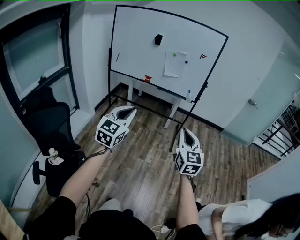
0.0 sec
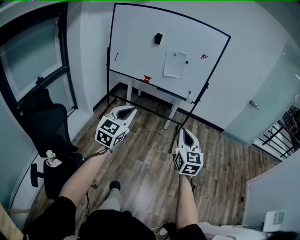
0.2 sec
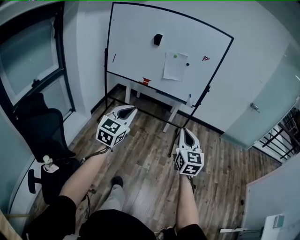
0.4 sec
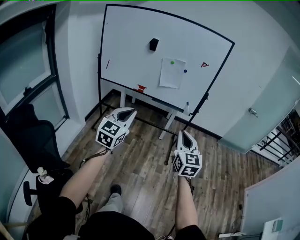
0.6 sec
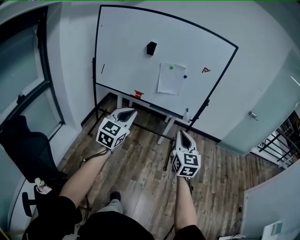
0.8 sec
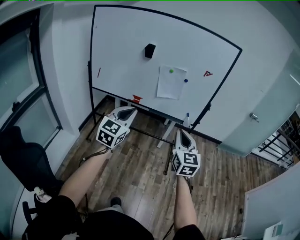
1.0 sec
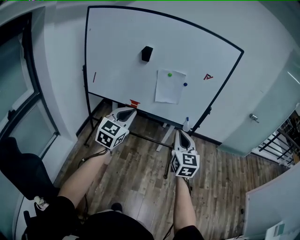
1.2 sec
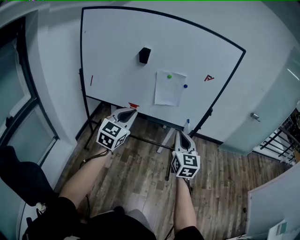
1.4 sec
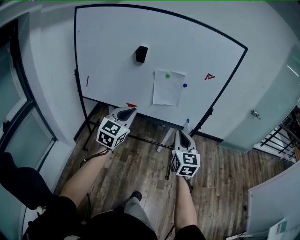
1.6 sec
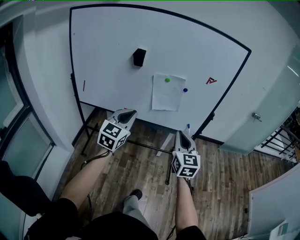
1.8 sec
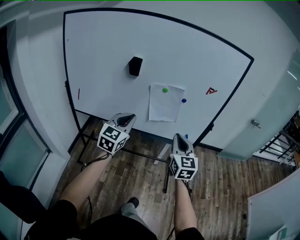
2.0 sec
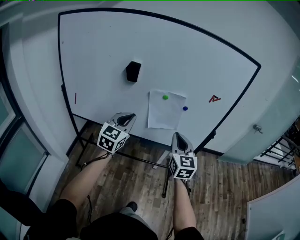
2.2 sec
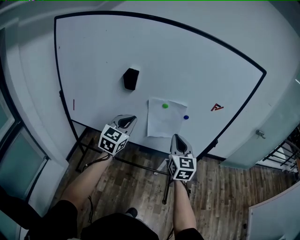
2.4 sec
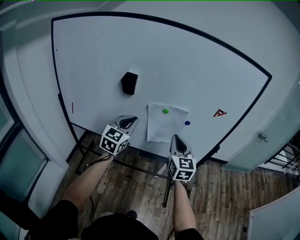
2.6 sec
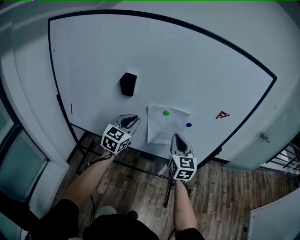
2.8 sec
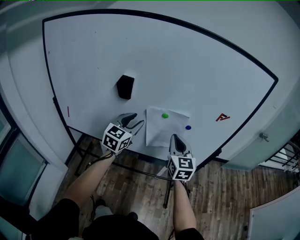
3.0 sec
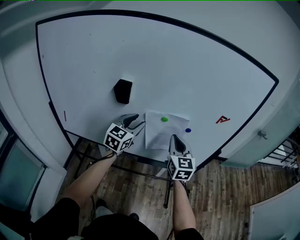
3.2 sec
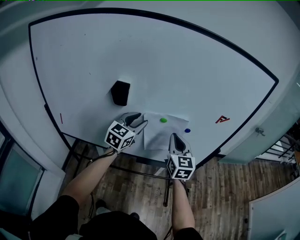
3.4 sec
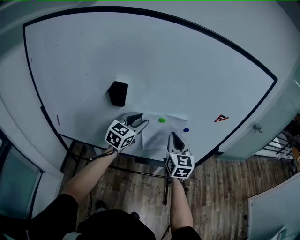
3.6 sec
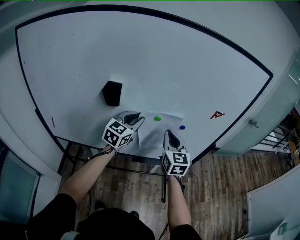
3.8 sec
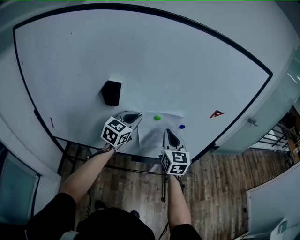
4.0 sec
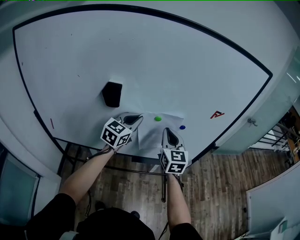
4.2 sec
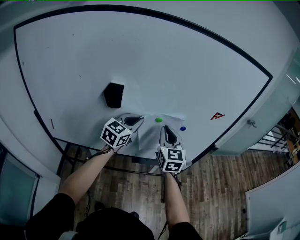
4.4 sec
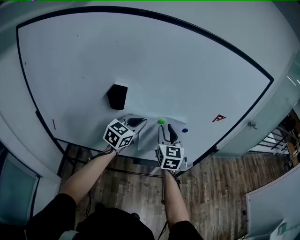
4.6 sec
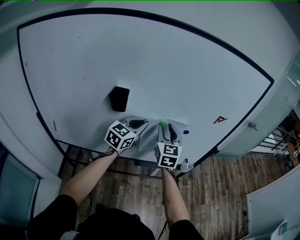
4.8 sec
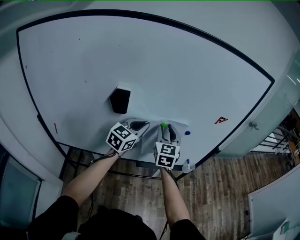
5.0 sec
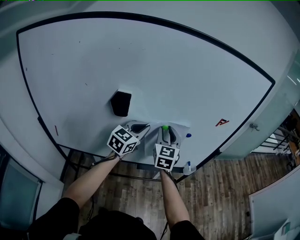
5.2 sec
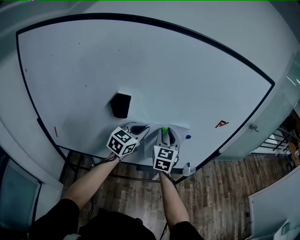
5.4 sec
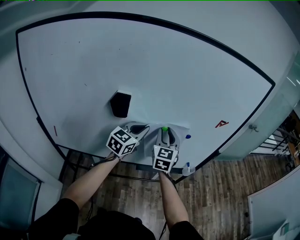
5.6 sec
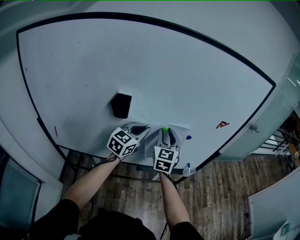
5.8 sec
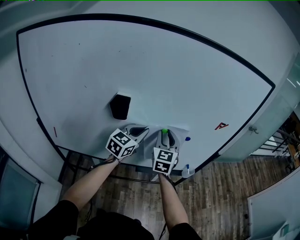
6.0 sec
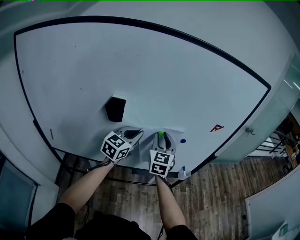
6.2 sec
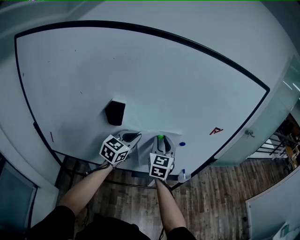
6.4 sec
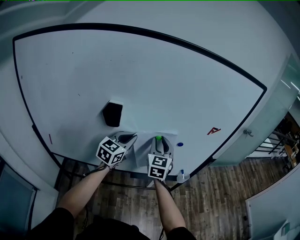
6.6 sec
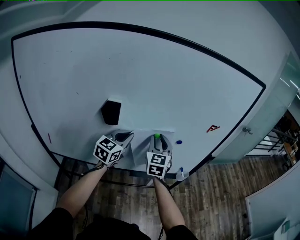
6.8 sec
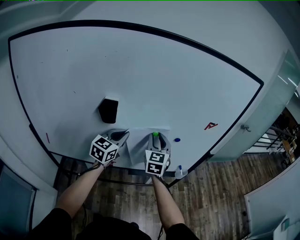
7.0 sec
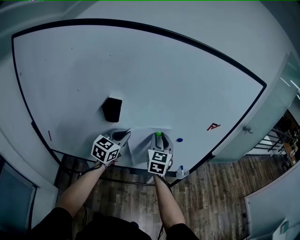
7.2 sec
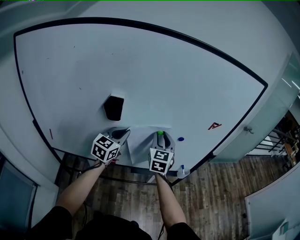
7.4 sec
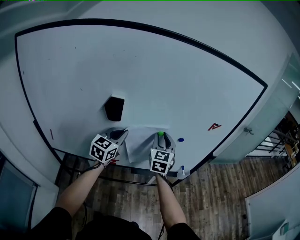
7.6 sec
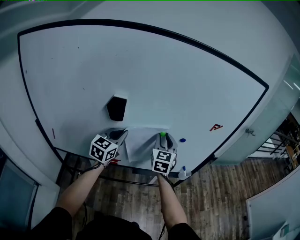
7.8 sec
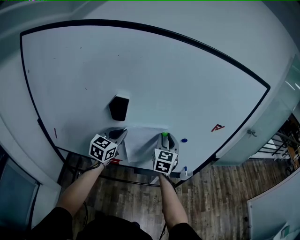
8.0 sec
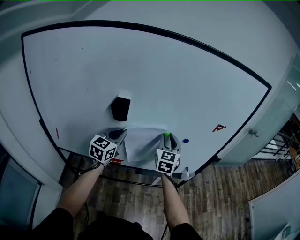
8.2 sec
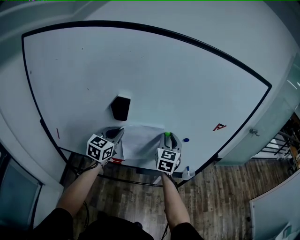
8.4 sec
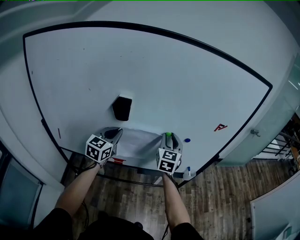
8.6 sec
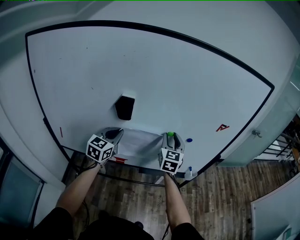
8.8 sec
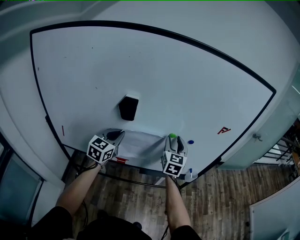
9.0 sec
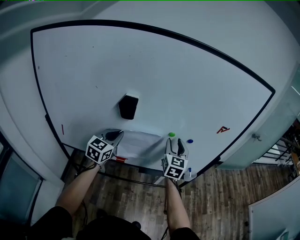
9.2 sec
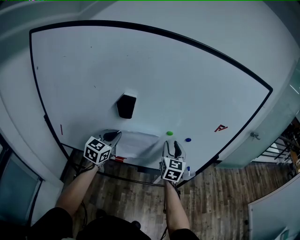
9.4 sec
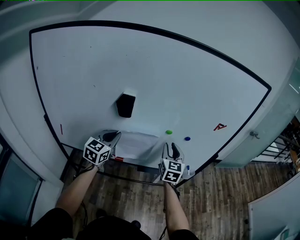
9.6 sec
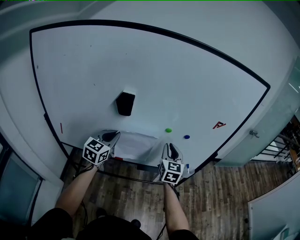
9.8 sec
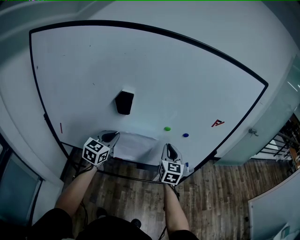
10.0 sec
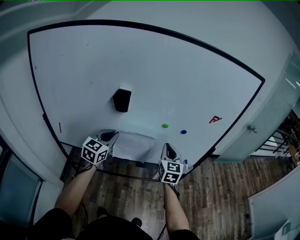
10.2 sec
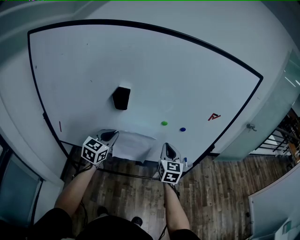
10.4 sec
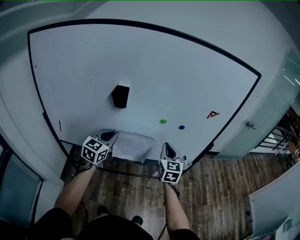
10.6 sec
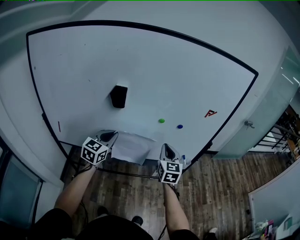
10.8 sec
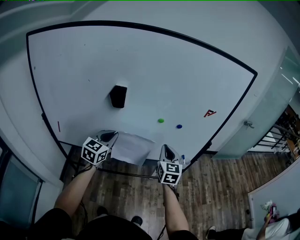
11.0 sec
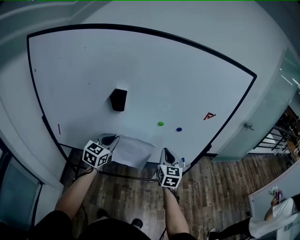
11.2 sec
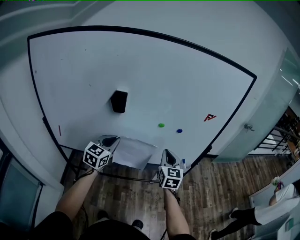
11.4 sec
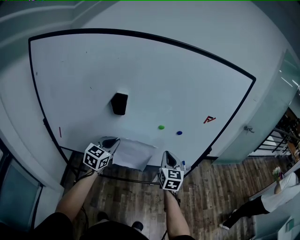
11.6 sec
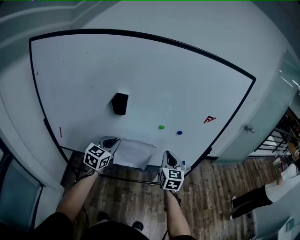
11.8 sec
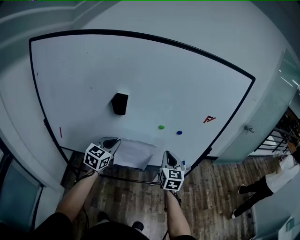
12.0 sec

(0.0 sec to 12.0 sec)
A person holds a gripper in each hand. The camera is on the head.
0.0 sec - 1.6 sec: Both grippers are carried forward, some 50 cm.
1.6 sec - 3.0 sec: The grippers both shift forward by approximately 35 cm. The left gripper opens up.
3.0 sec - 4.4 sec: Both grippers travel together forward, some 5 cm. The left gripper closes up.
4.4 sec - 6.0 sec: The right gripper opens its fingers.
6.0 sec - 7.6 sec: The left gripper moves to the left, roughly 5 cm.
7.6 sec - 9.0 sec: The left gripper heads to the left, covering roughly 5 cm.
9.0 sec - 10.4 sec: The right gripper travels backward by some 10 cm, and closes up, while the left gripper is displaced backward by some 5 cm.
10.4 sec - 12.0 sec: The grippers make only small movements.

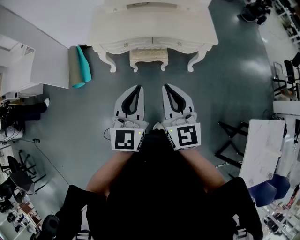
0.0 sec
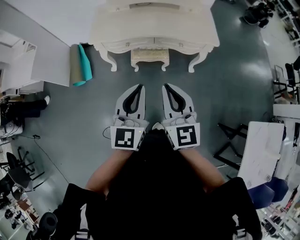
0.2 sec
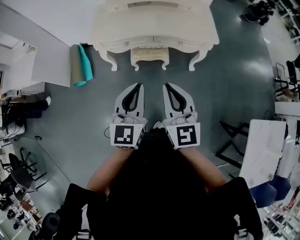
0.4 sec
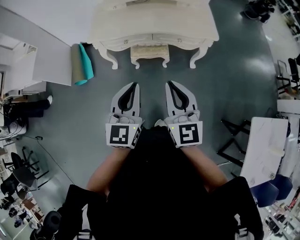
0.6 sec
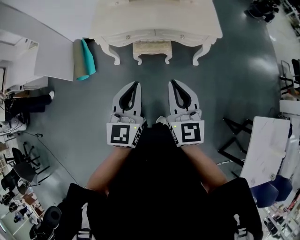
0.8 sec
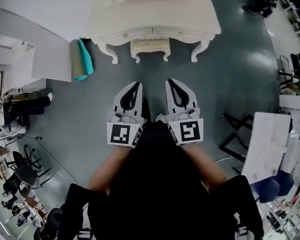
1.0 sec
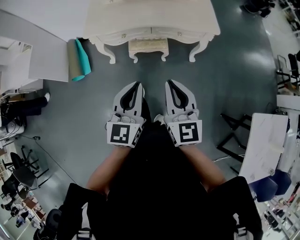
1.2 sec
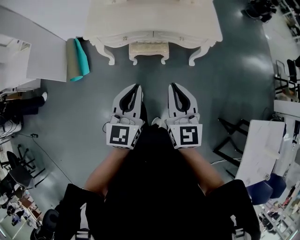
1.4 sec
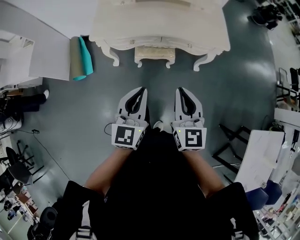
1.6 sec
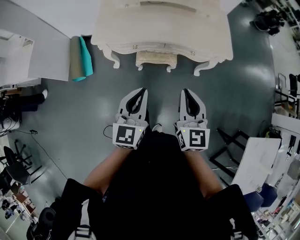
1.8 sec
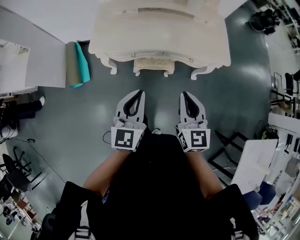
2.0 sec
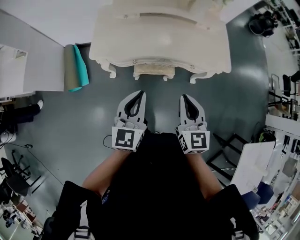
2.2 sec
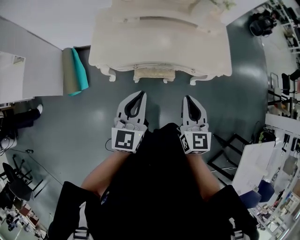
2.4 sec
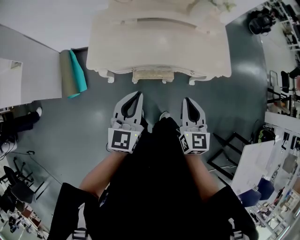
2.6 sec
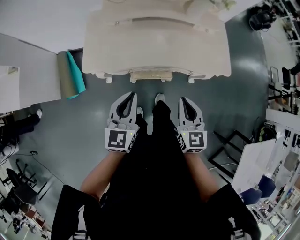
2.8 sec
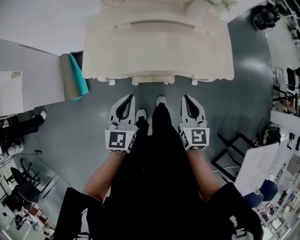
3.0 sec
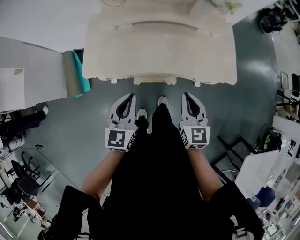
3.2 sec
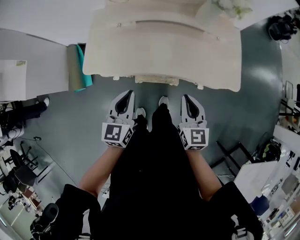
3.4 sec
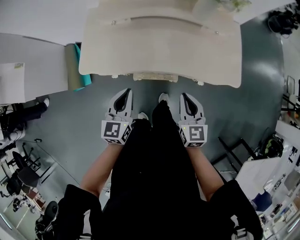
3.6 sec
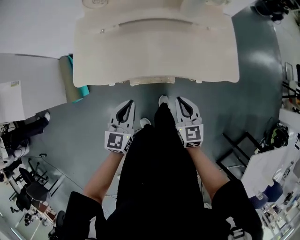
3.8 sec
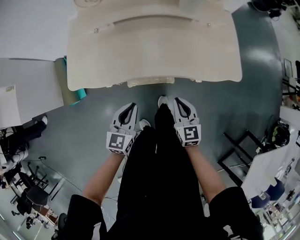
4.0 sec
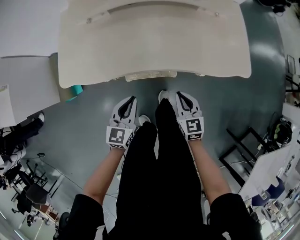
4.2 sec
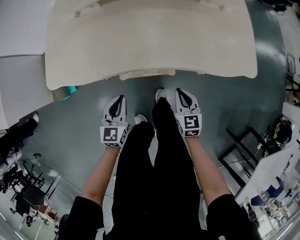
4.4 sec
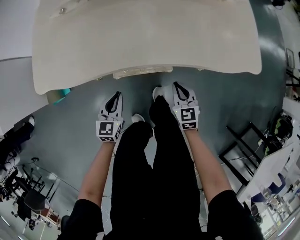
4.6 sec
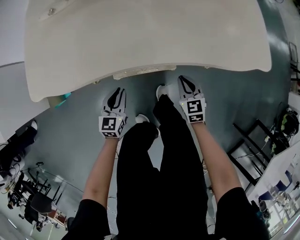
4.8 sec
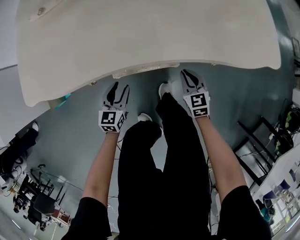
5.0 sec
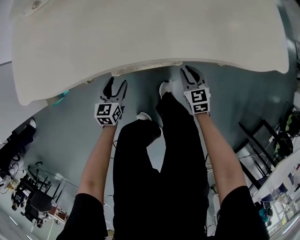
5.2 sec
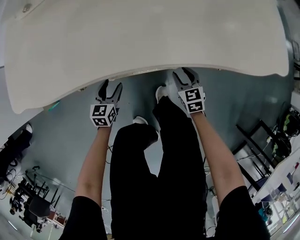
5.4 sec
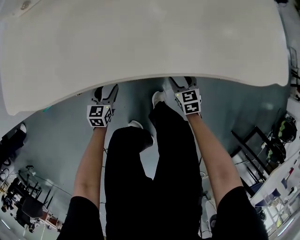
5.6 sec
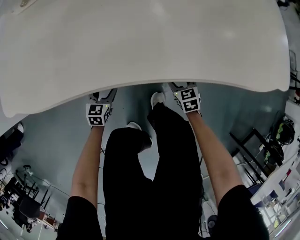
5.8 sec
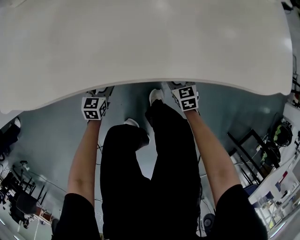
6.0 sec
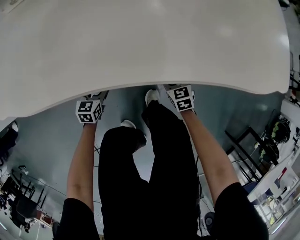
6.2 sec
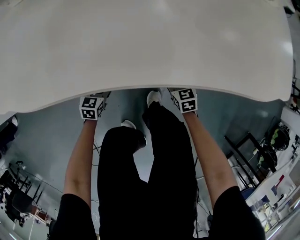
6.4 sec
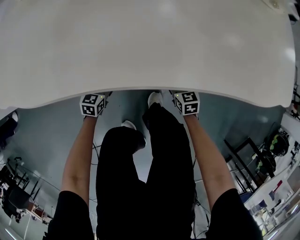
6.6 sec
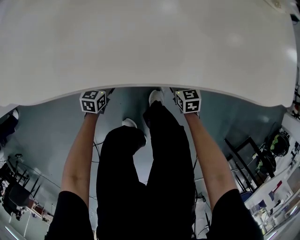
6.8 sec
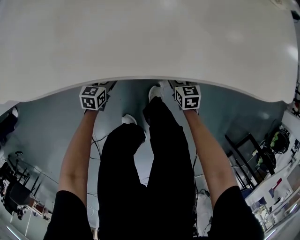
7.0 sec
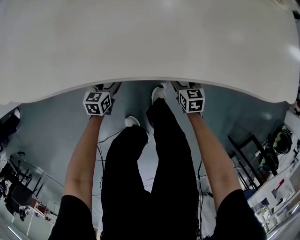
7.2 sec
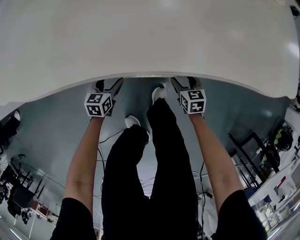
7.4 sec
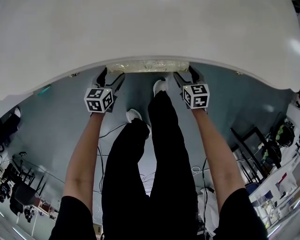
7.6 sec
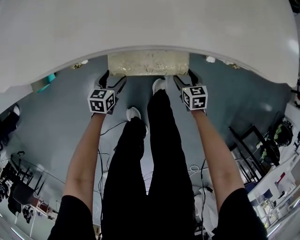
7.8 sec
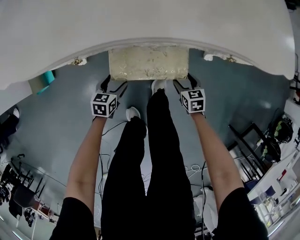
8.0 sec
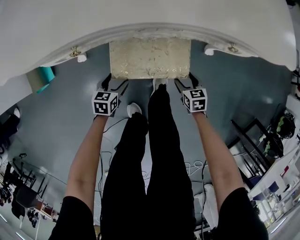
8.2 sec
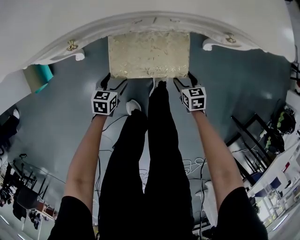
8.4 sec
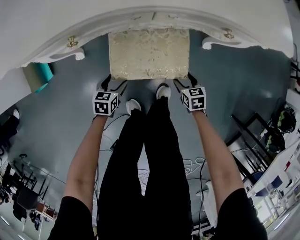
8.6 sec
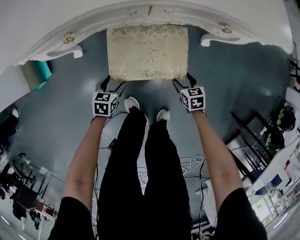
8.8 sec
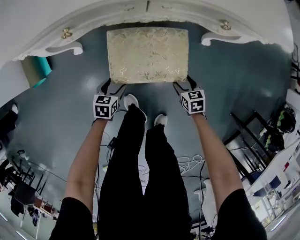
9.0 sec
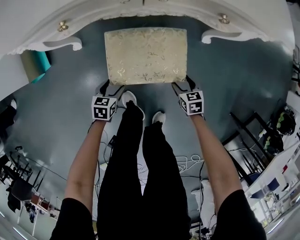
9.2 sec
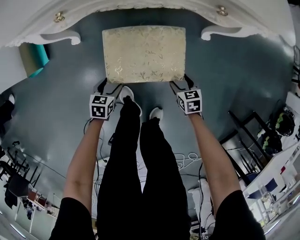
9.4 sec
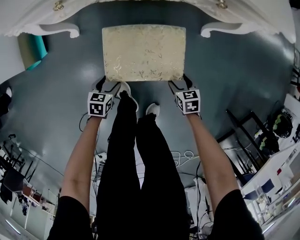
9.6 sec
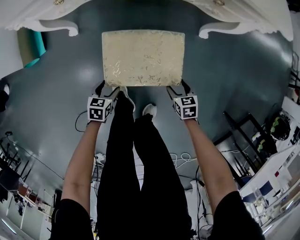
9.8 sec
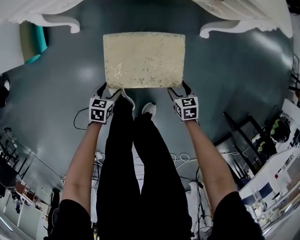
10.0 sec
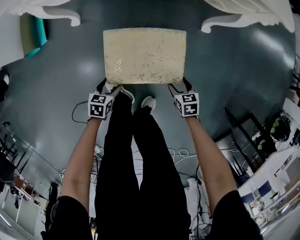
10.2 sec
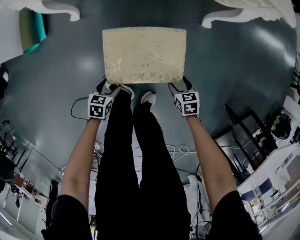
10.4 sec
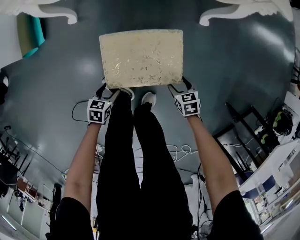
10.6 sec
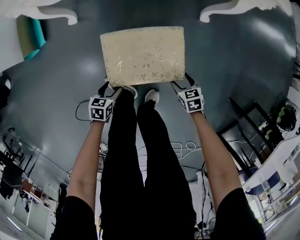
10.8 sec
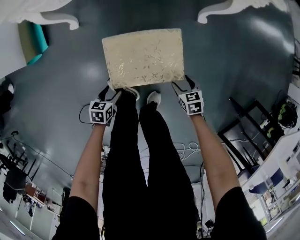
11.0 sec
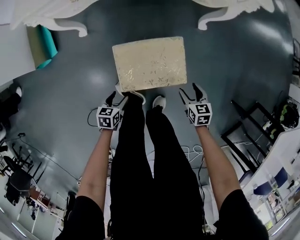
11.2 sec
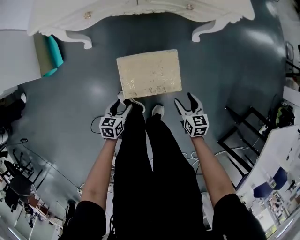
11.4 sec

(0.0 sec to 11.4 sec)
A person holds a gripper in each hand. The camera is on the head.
0.0 sec - 1.4 sec: The left gripper ends up about 5 cm from where it was.
1.4 sec - 2.8 sec: The left gripper travels forward and to the left by approximately 25 cm. Meanwhile the right gripper is displaced forward by approximately 20 cm.
2.8 sec - 4.2 sec: The grippers both shift downward by some 25 cm.
4.2 sec - 5.6 sec: Both grippers move downward, about 35 cm. The left gripper opens its fingers. Meanwhile the right gripper opens.
5.6 sec - 7.2 sec: The grippers stay close to where they were, moving slightly.
7.2 sec - 8.6 sec: The grippers both shift backward by roughly 15 cm.
8.6 sec - 10.0 sec: Both grippers travel together backward, approximately 20 cm.
10.0 sec - 11.4 sec: Both grippers move upward, some 15 cm.
